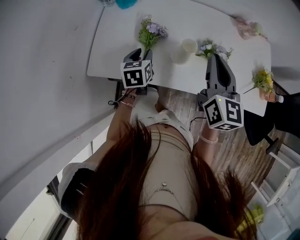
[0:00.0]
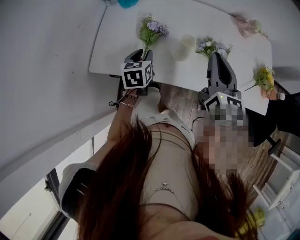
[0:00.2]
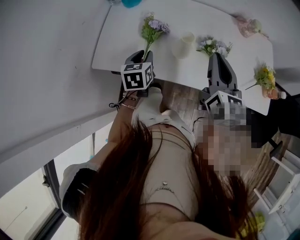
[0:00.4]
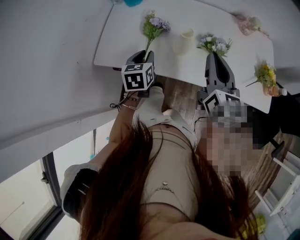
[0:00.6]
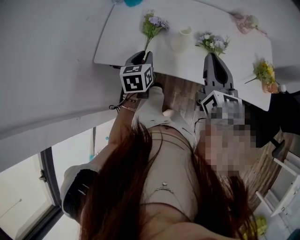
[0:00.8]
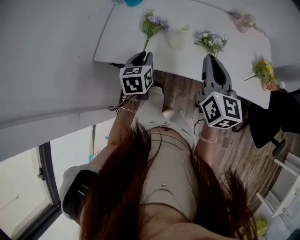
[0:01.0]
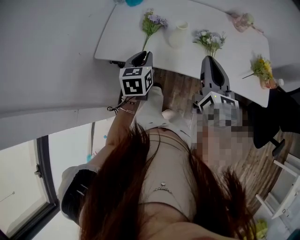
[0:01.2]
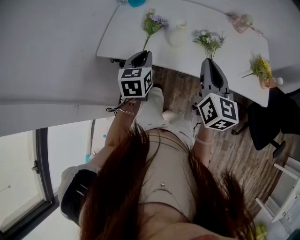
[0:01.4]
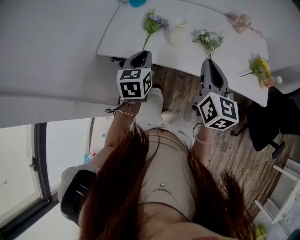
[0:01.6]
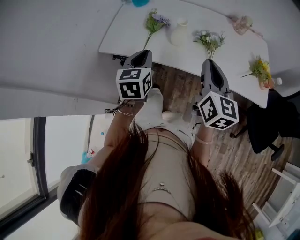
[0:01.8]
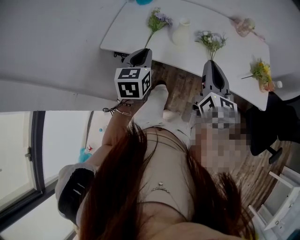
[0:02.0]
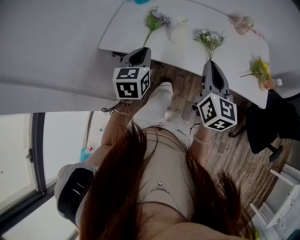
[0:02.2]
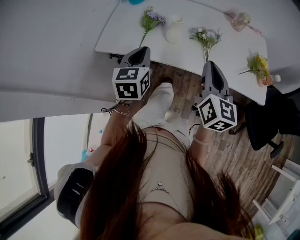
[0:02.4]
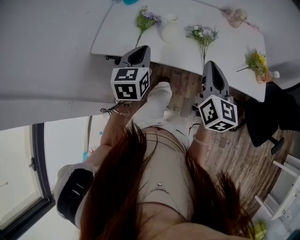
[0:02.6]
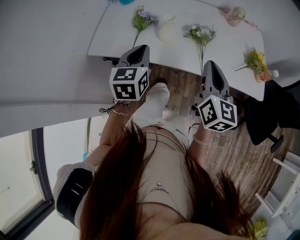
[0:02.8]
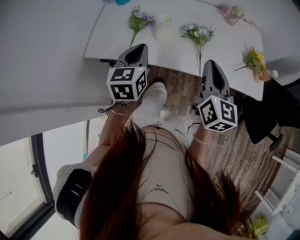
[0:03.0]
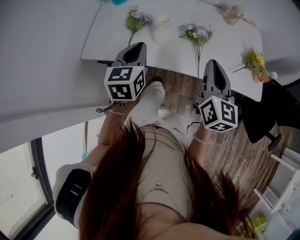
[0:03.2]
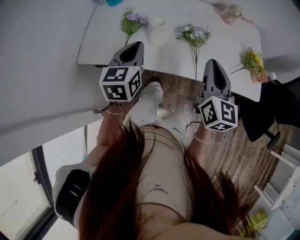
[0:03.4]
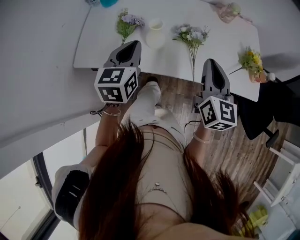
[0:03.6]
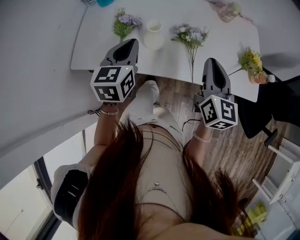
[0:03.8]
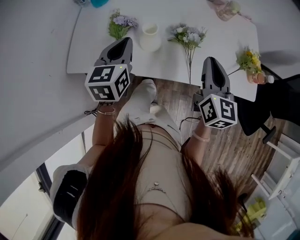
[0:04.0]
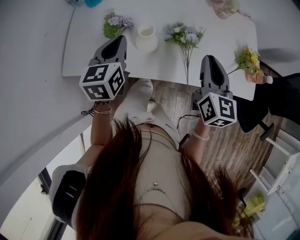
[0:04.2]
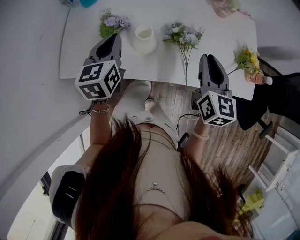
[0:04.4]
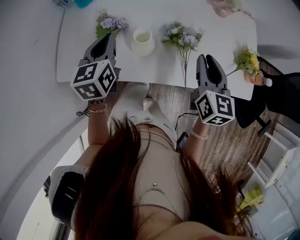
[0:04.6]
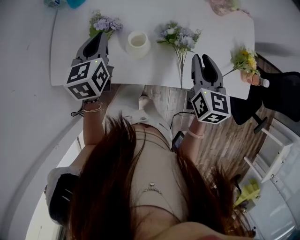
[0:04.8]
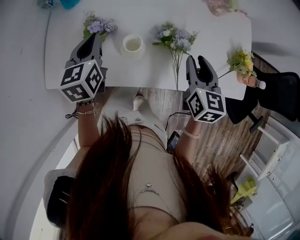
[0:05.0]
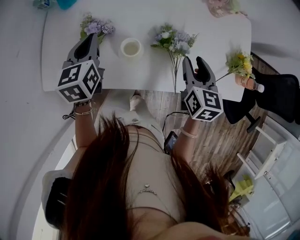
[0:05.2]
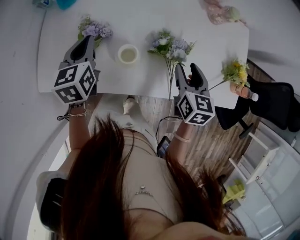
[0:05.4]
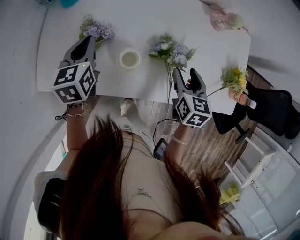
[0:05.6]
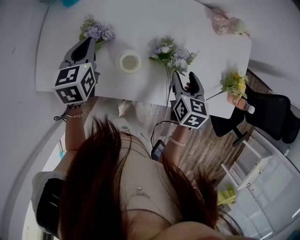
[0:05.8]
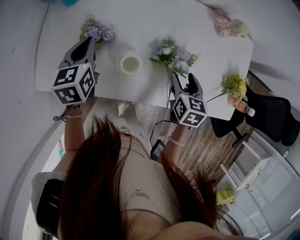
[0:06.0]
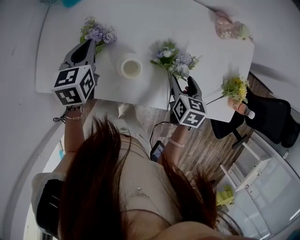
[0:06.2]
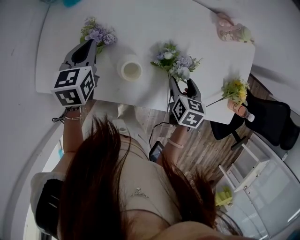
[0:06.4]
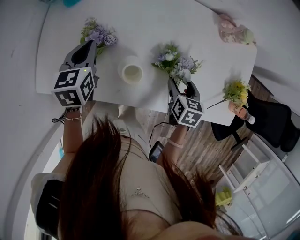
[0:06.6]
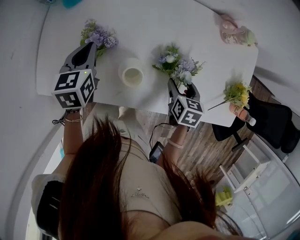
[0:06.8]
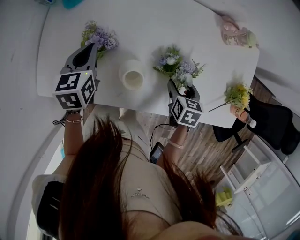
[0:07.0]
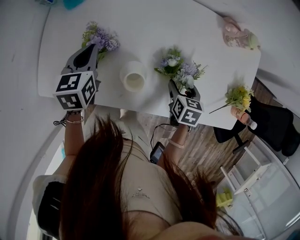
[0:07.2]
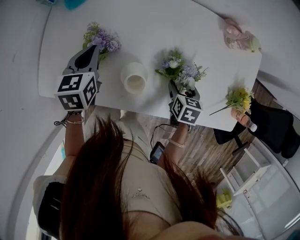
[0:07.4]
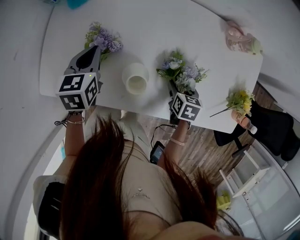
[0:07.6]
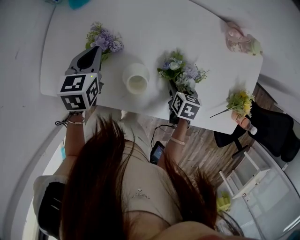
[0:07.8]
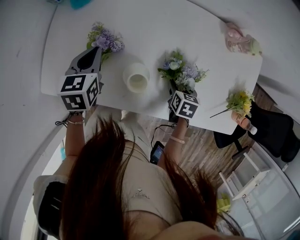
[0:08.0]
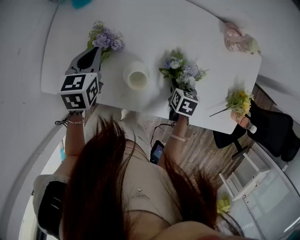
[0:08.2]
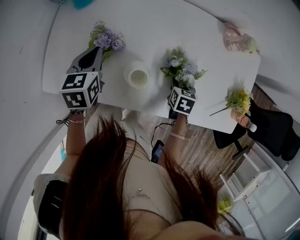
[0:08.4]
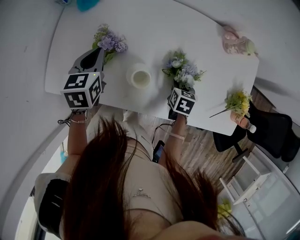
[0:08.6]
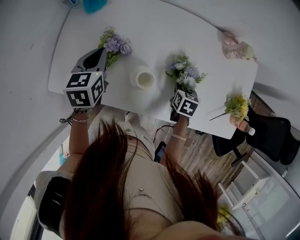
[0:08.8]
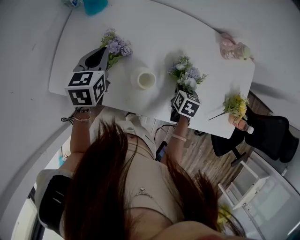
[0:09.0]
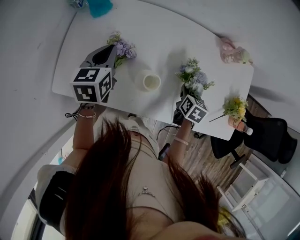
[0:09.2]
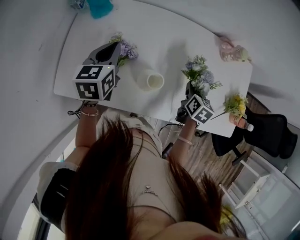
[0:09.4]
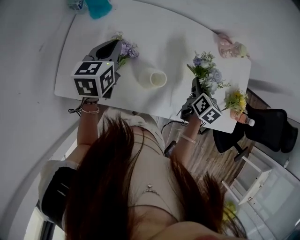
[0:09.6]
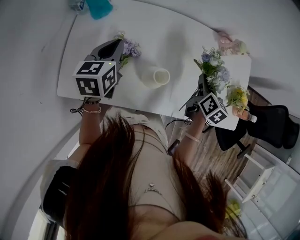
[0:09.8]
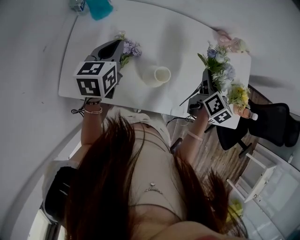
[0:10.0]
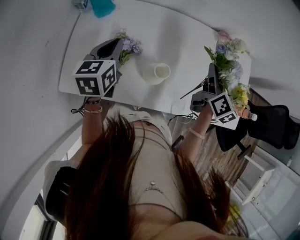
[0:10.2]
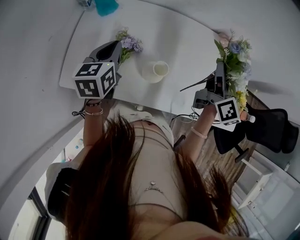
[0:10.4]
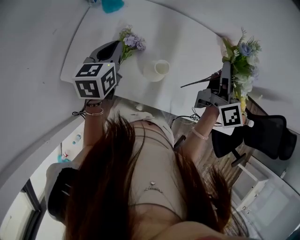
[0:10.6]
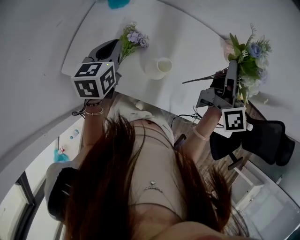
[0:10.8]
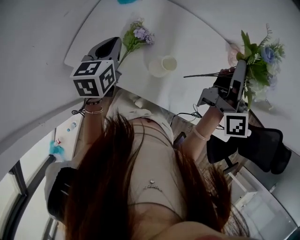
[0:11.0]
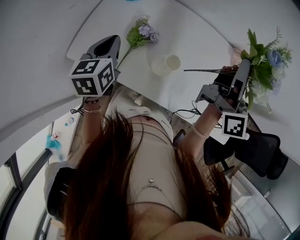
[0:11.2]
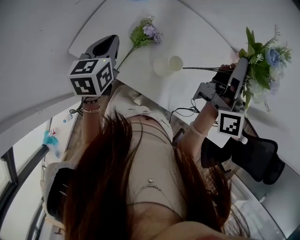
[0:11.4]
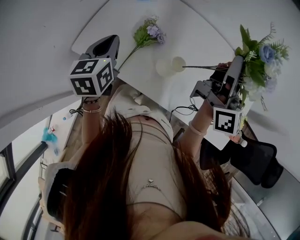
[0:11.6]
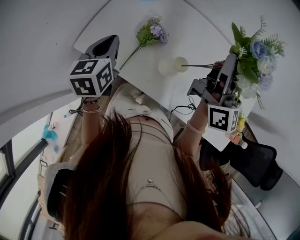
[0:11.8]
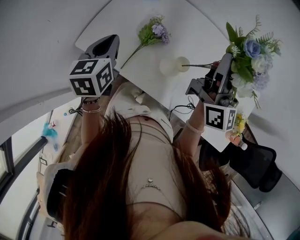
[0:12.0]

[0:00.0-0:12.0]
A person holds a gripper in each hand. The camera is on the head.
0.0 to 1.6 s: The left gripper goes roughly 20 cm backward and upward. Meanwhile the right gripper is displaced backward by approximately 20 cm.
1.6 to 3.0 s: The two grippers go approximately 5 cm to the right.
3.0 to 4.4 s: The grippers both shift forward by roughly 15 cm.
4.4 to 6.0 s: The left gripper travels forward, downward and to the left by roughly 15 cm, while the right gripper heads downward and forward, covering some 20 cm, rotates about 30 degrees, and opens.
6.0 to 7.6 s: The right gripper goes approximately 10 cm downward.
7.6 to 9.0 s: The left gripper heads upward, covering about 5 cm, while the right gripper closes its fingers.
9.0 to 10.4 s: The left gripper is displaced upward by approximately 5 cm. The right gripper shifts roughly 30 cm upward, and tips its fingers upward by approximately 50 degrees.
10.4 to 12.0 s: The right gripper is displaced to the left and upward by approximately 15 cm, and changes its angle by roughly 30 degrees, while the left gripper is displaced to the left and backward by some 15 cm, and swivels about 20 degrees.

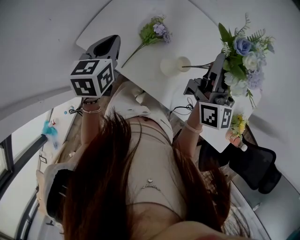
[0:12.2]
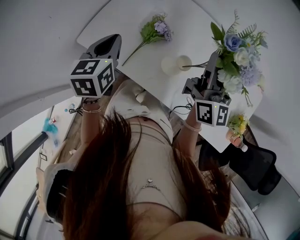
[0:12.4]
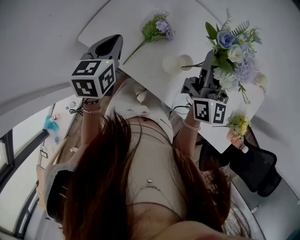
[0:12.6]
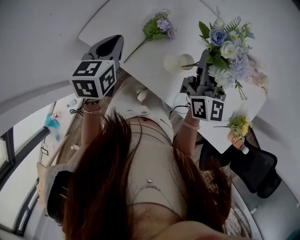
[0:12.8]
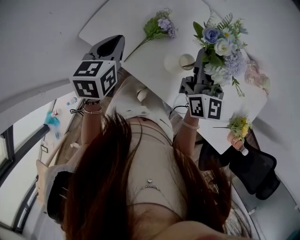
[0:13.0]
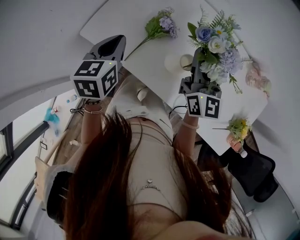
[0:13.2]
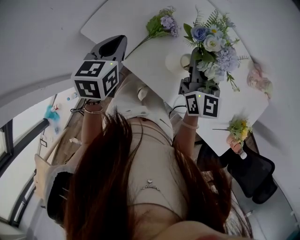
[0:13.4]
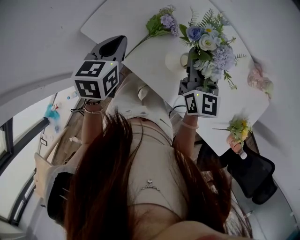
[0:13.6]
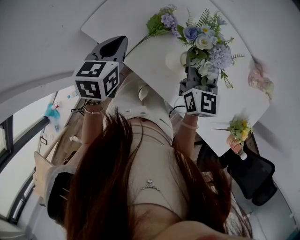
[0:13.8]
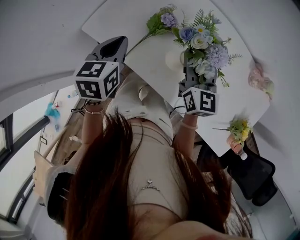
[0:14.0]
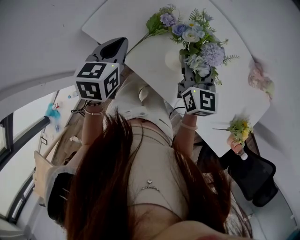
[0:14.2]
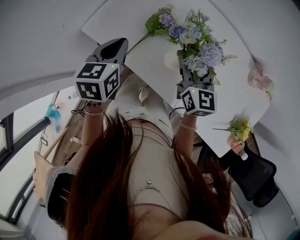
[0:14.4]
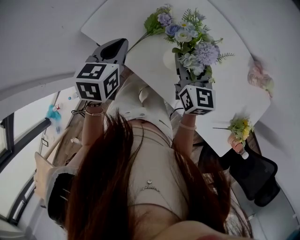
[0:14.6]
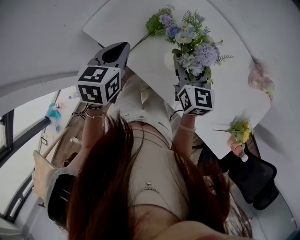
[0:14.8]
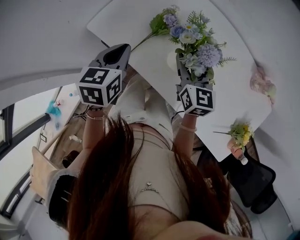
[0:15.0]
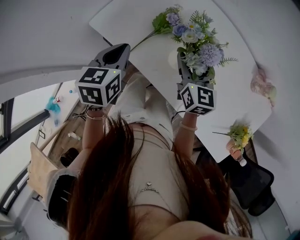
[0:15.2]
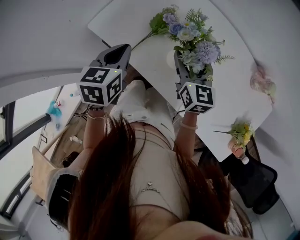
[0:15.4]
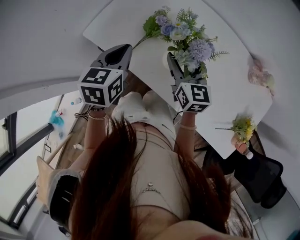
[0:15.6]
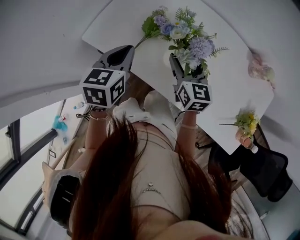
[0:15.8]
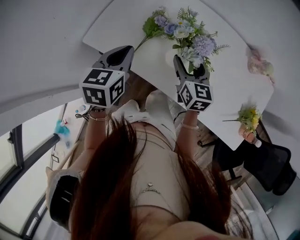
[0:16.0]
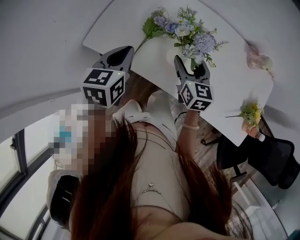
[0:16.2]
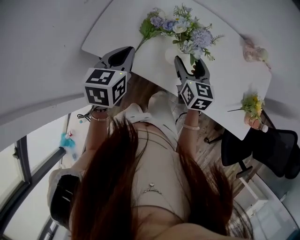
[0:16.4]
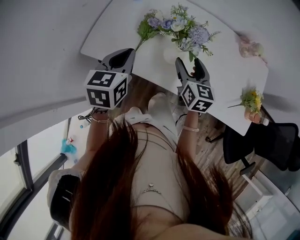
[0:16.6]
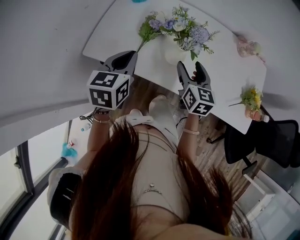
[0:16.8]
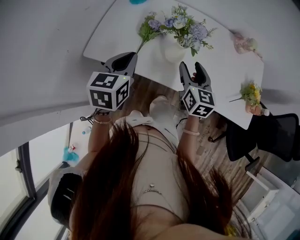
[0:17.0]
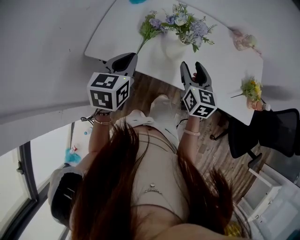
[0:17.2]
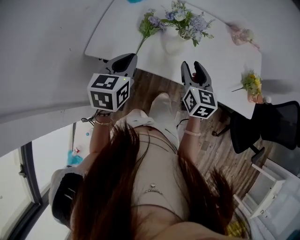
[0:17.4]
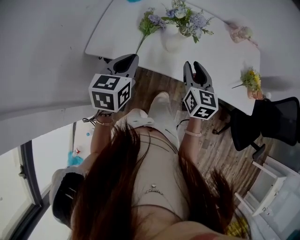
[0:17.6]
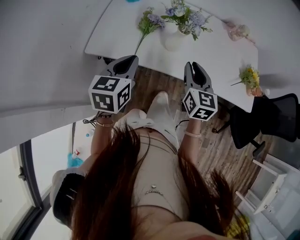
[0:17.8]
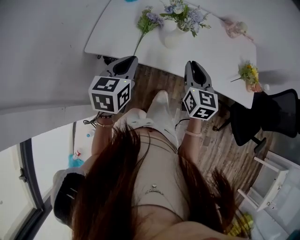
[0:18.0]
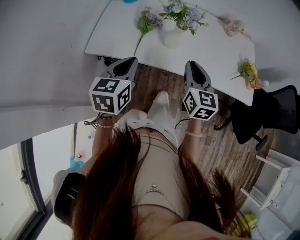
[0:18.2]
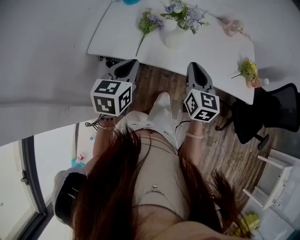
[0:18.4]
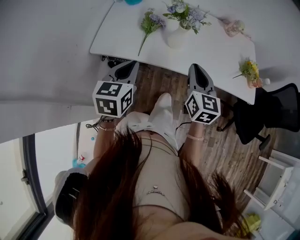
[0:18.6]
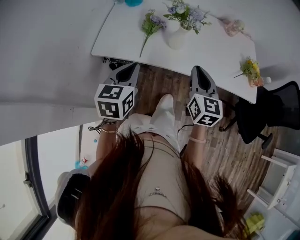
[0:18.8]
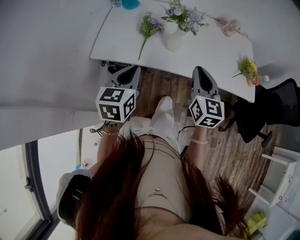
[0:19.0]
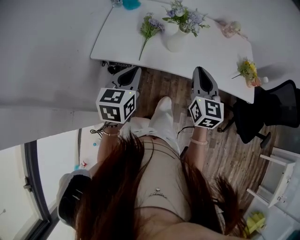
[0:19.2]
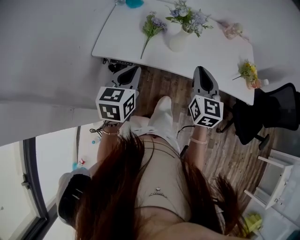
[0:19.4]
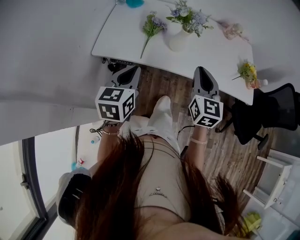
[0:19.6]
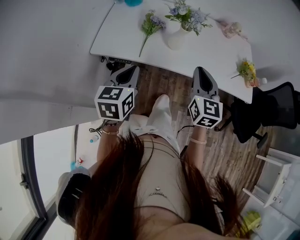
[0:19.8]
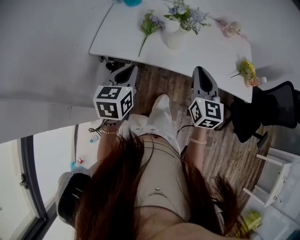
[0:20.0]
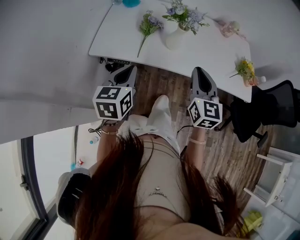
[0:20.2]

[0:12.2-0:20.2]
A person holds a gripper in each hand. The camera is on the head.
12.2 to 13.8 s: The right gripper is displaced downward and to the left by approximately 15 cm, and turns by approximately 30 degrees.
13.8 to 15.4 s: The right gripper opens up. Meanwhile the left gripper ends up some 5 cm from where it was.
15.4 to 17.0 s: The right gripper goes approximately 10 cm backward, and rotates approximately 30 degrees, while the left gripper changes place by approximately 5 cm, and rotates roughly 20 degrees.
17.0 to 18.6 s: Both grippers travel together backward, roughly 15 cm. The right gripper closes.
18.6 to 20.2 s: There are only small adjustments of the grippers.

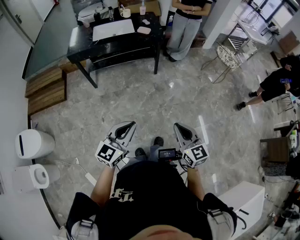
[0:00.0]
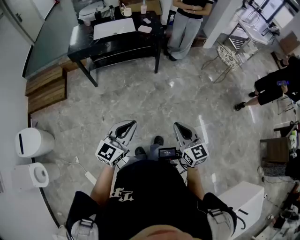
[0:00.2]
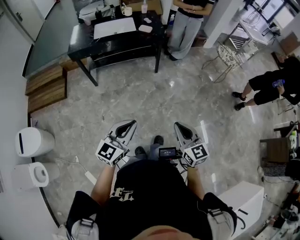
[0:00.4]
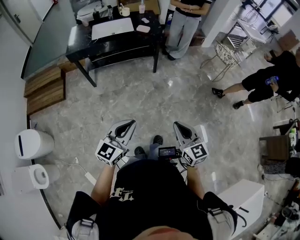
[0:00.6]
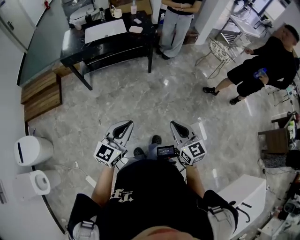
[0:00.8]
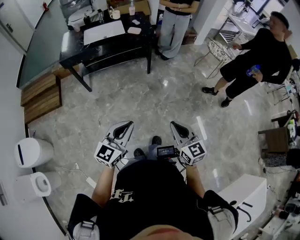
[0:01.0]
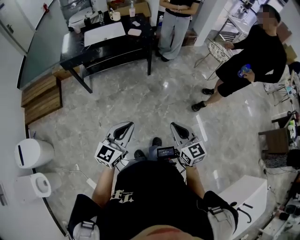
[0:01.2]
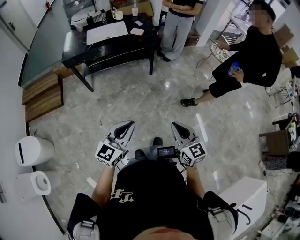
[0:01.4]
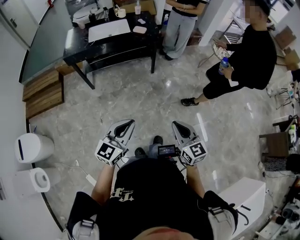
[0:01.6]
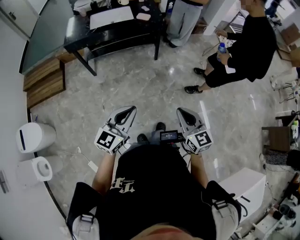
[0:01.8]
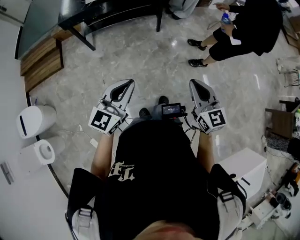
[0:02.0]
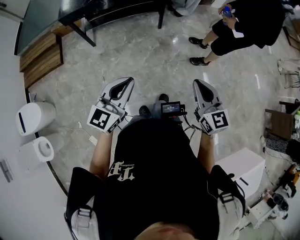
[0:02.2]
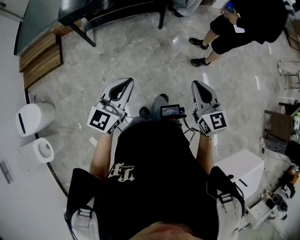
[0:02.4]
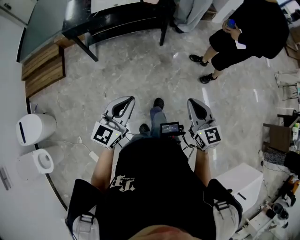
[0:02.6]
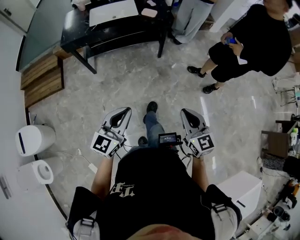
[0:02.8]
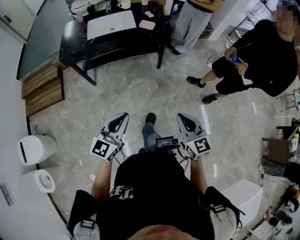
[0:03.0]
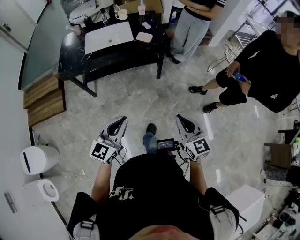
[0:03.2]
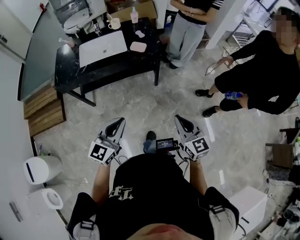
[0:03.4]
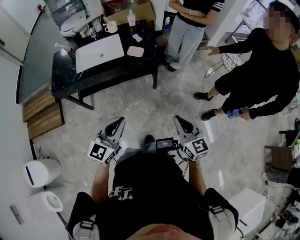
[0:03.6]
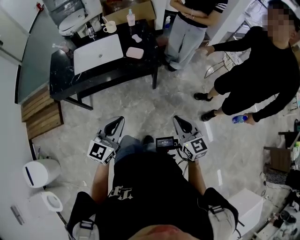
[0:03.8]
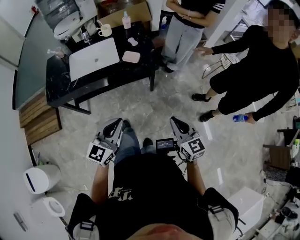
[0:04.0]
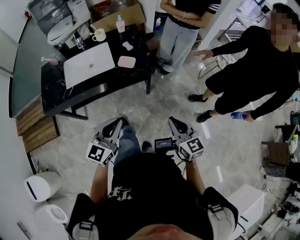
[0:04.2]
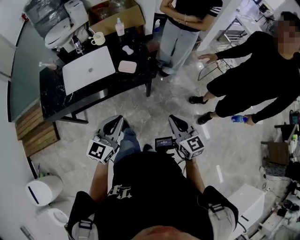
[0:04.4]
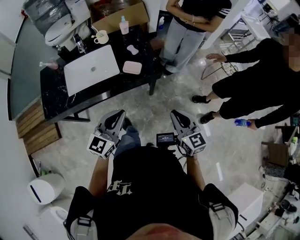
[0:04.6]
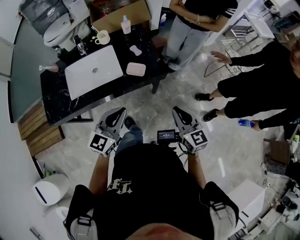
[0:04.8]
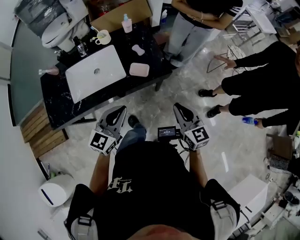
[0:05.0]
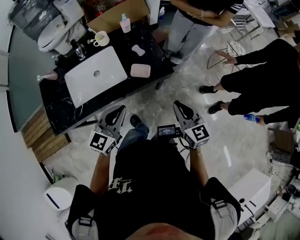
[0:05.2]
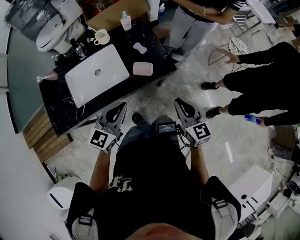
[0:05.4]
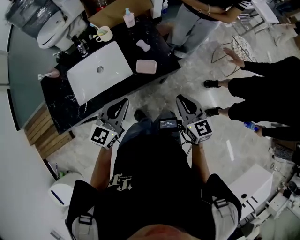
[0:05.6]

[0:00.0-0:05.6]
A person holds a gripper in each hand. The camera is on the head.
0.0 to 1.4 s: The two grippers keep their place.
1.4 to 2.8 s: The right gripper shifts approximately 10 cm forward; the left gripper is displaced forward and to the left by roughly 15 cm.
2.8 to 4.2 s: Both grippers move forward, some 40 cm.
4.2 to 5.6 s: Both grippers travel together forward and to the left, approximately 25 cm.
